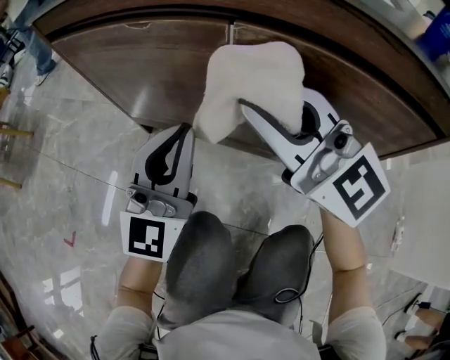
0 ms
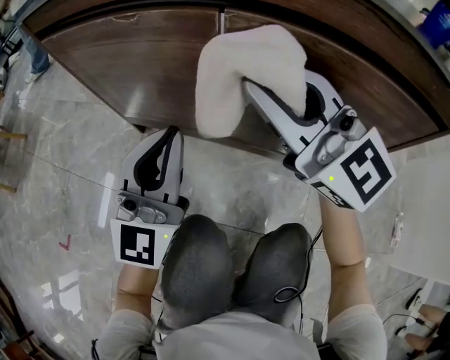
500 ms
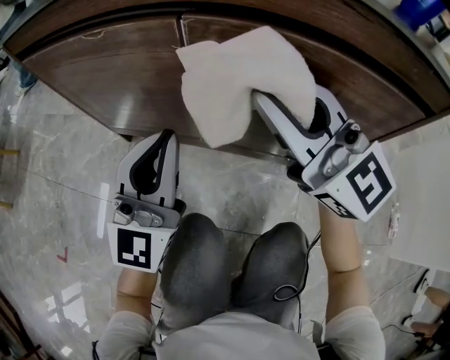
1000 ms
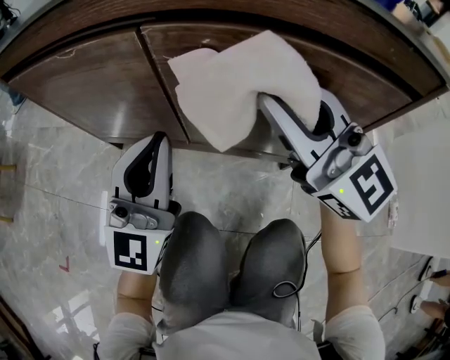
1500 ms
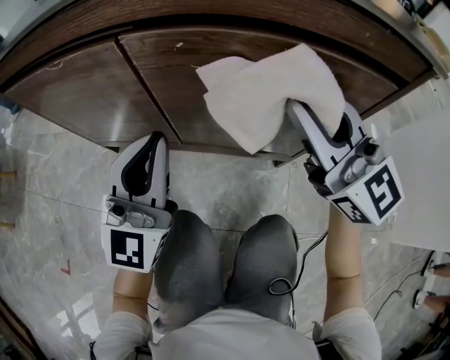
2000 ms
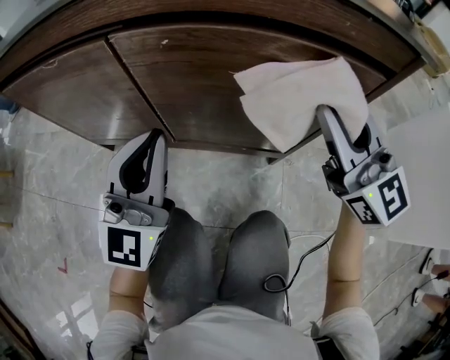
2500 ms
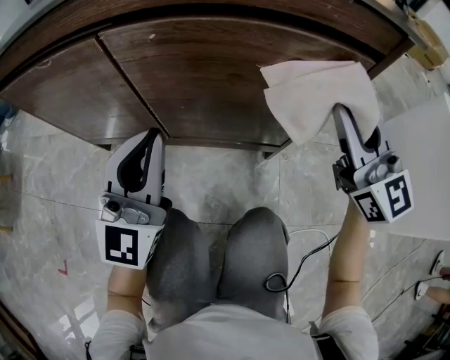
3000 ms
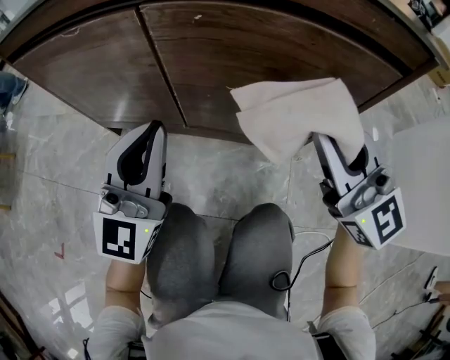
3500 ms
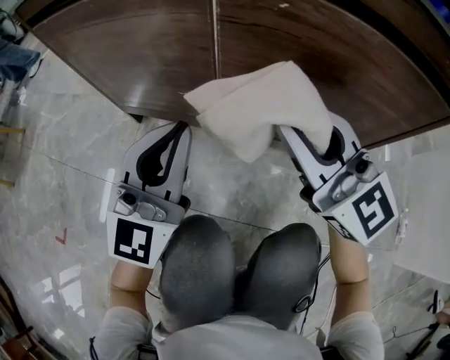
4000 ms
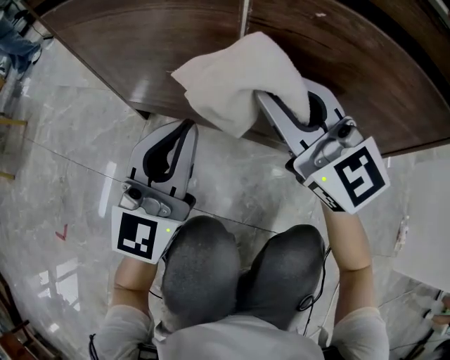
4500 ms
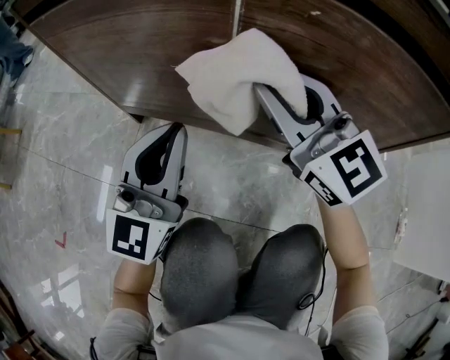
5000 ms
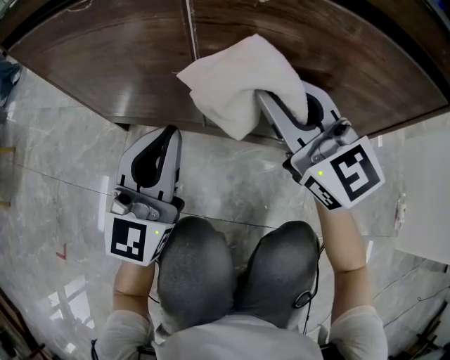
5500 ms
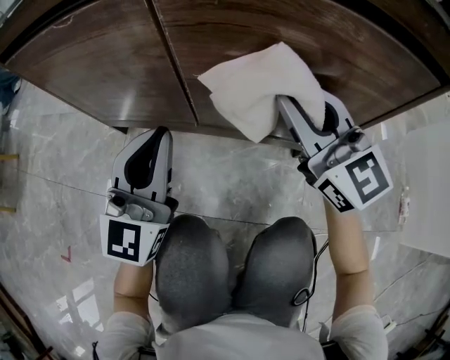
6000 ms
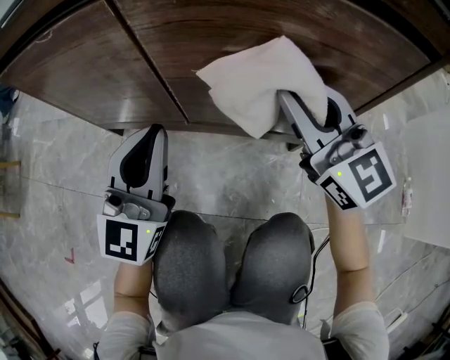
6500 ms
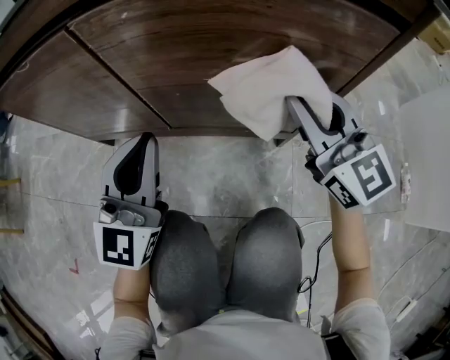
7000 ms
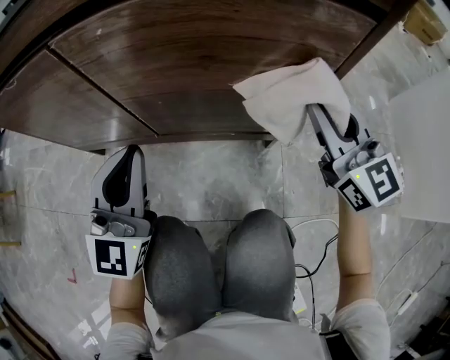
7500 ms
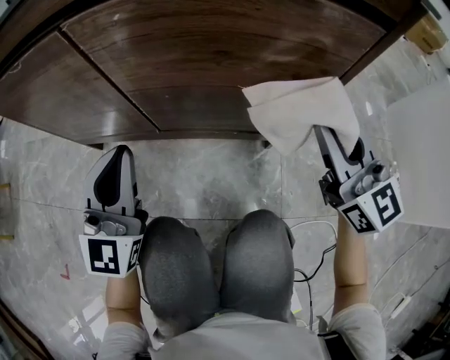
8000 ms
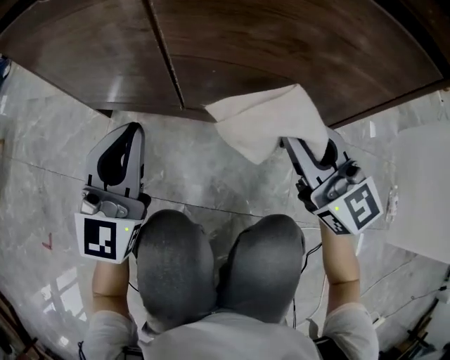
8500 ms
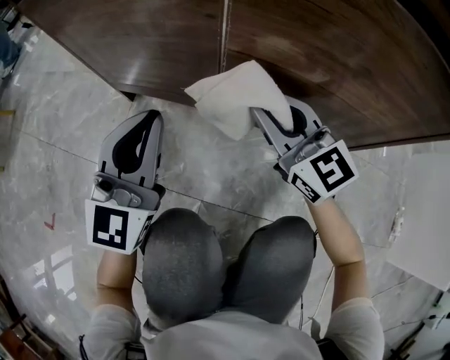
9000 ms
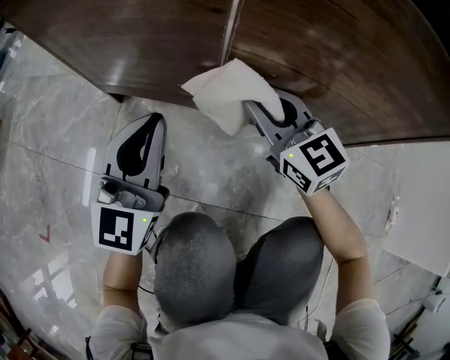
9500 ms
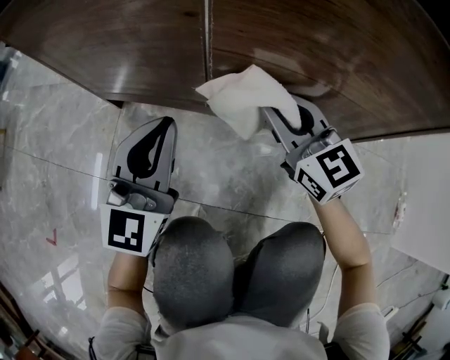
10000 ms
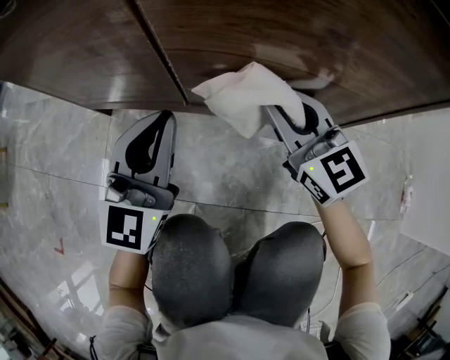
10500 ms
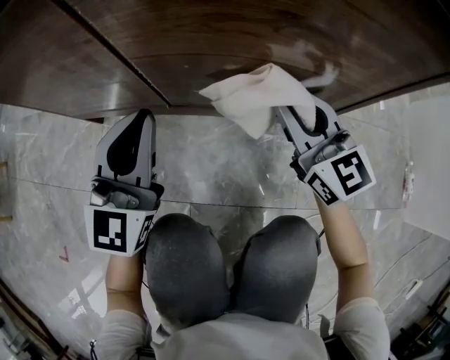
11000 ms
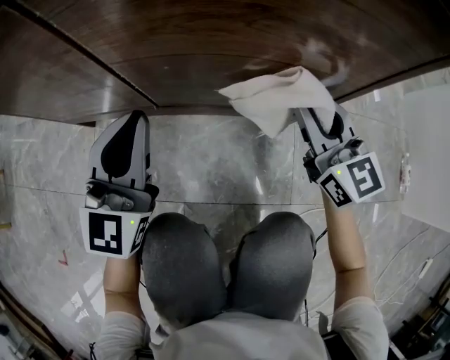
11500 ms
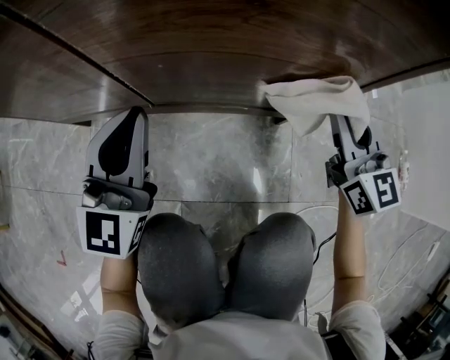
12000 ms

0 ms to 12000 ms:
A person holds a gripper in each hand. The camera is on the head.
0 ms to 2000 ms: The right gripper shifts some 20 cm to the right, and turns by roughly 20 degrees; the left gripper travels to the right by some 10 cm.
2000 ms to 4000 ms: The left gripper is displaced to the left by approximately 10 cm. The right gripper moves to the left and downward, some 15 cm.
4000 ms to 6000 ms: The right gripper moves to the right, some 10 cm.
6000 ms to 8000 ms: The right gripper goes some 20 cm to the right and backward.
8000 ms to 10000 ms: The left gripper goes roughly 15 cm downward, to the left and forward; the right gripper travels to the left, forward and downward by about 30 cm, and turns by some 20 degrees.
10000 ms to 12000 ms: The right gripper moves to the right, approximately 25 cm, and swivels approximately 30 degrees; the left gripper heads to the right, covering roughly 10 cm.

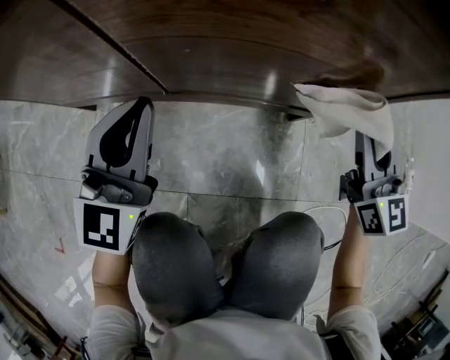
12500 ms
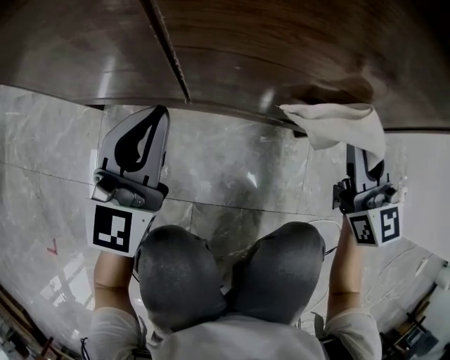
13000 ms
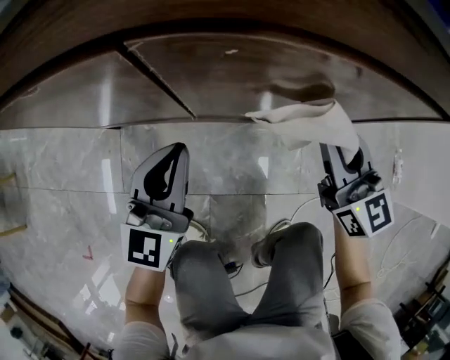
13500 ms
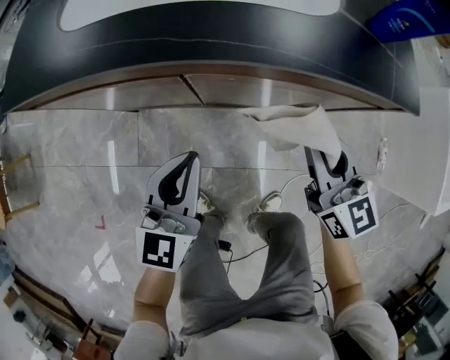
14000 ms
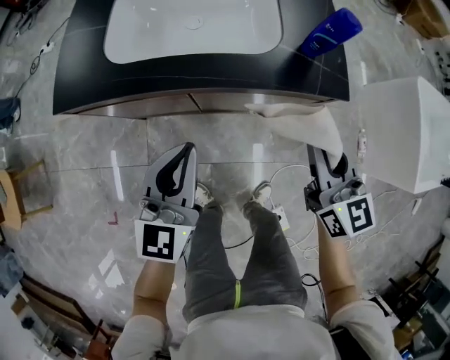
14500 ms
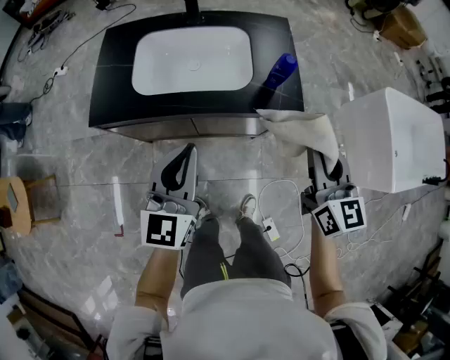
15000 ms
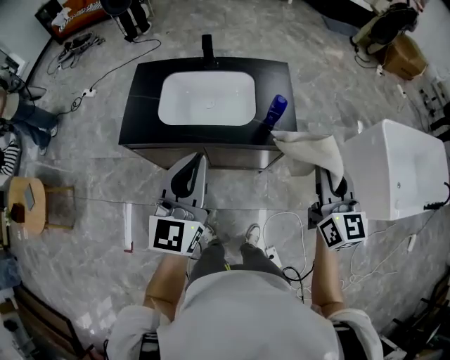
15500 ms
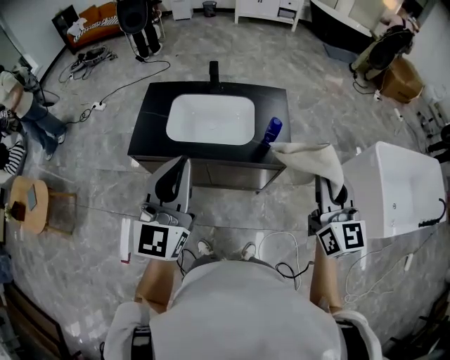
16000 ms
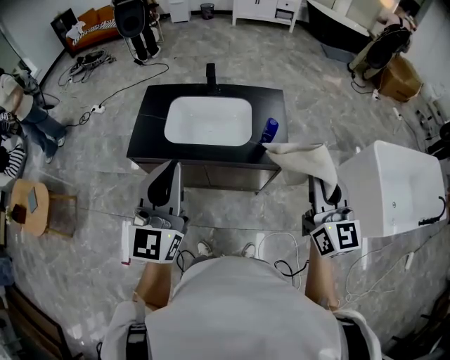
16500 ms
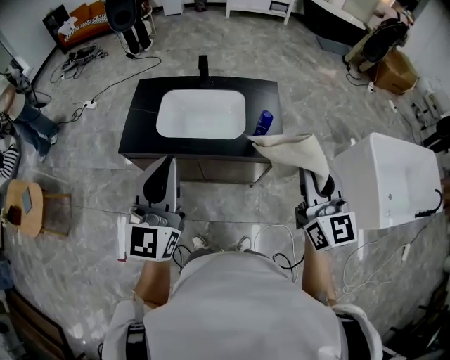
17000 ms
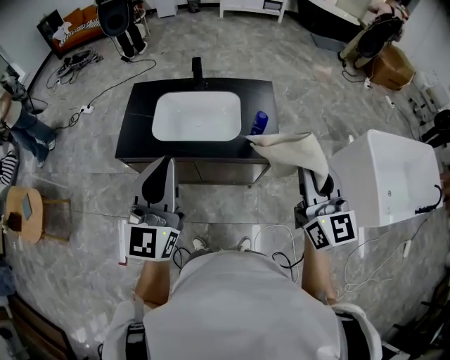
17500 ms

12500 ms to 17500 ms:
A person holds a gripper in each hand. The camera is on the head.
12500 ms to 15000 ms: Both grippers travel together upward, approximately 70 cm.
15000 ms to 17500 ms: Both grippers move upward, about 25 cm.

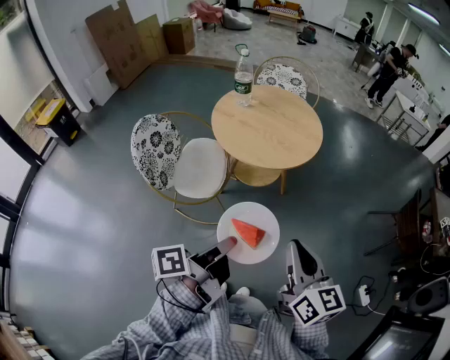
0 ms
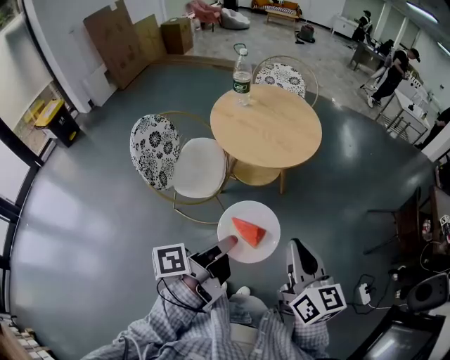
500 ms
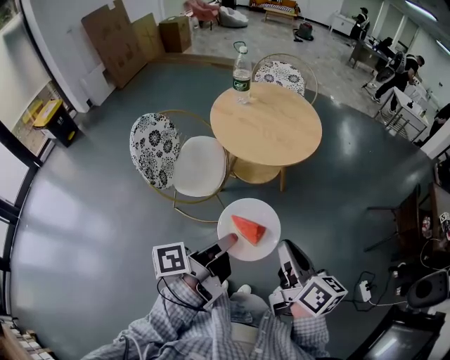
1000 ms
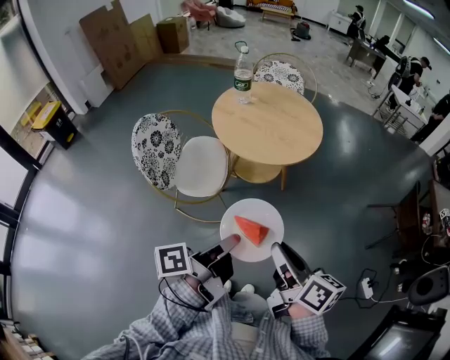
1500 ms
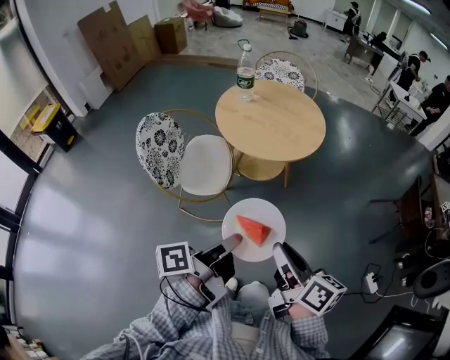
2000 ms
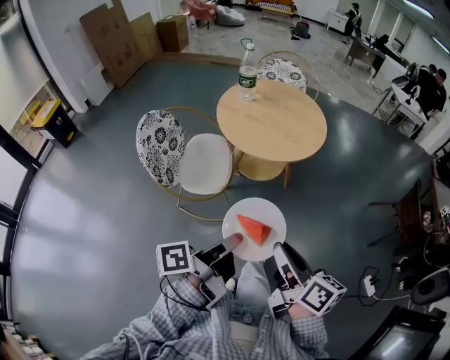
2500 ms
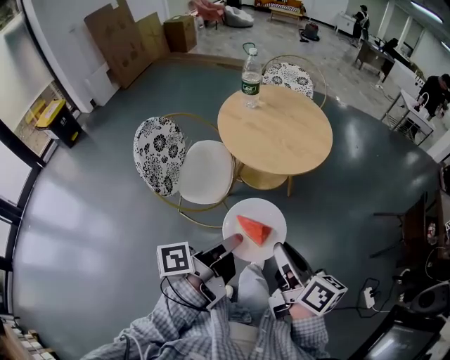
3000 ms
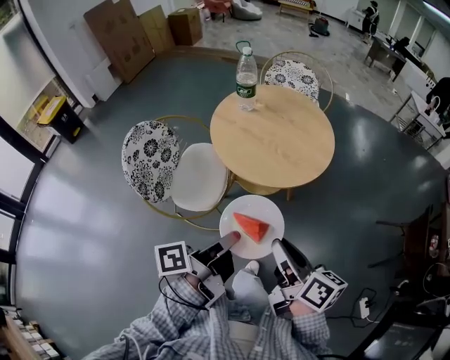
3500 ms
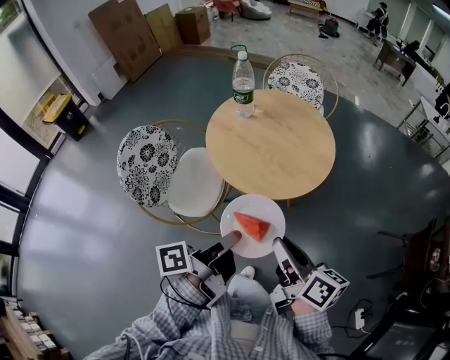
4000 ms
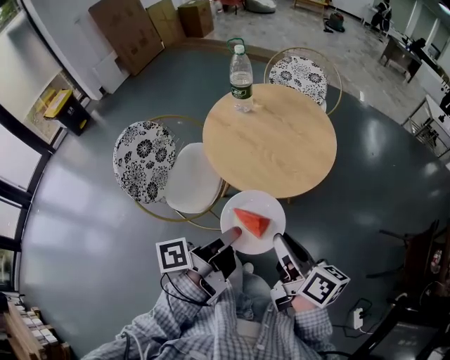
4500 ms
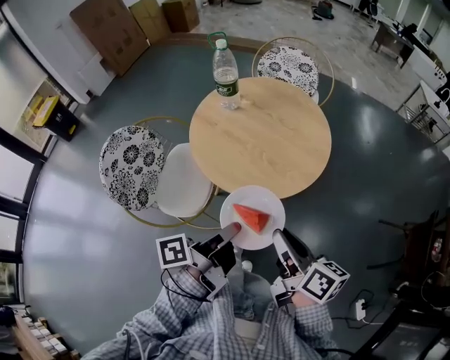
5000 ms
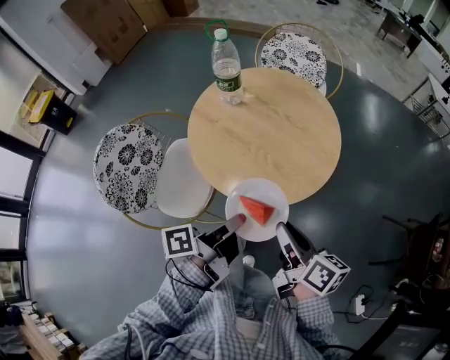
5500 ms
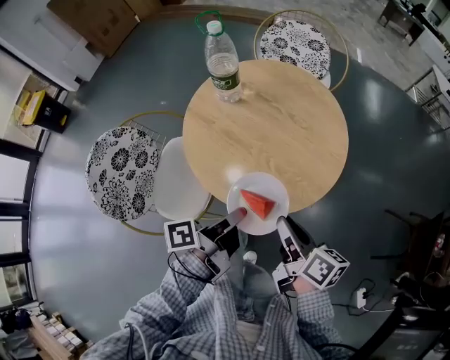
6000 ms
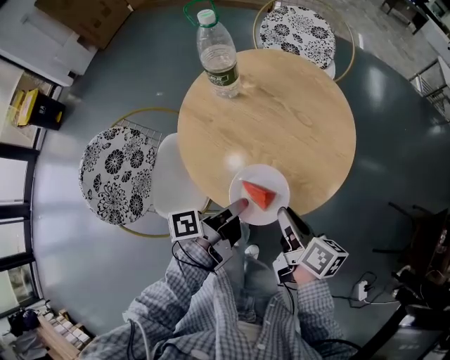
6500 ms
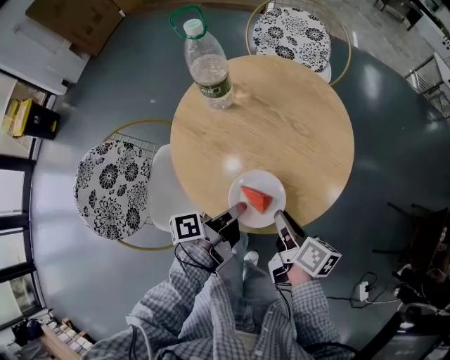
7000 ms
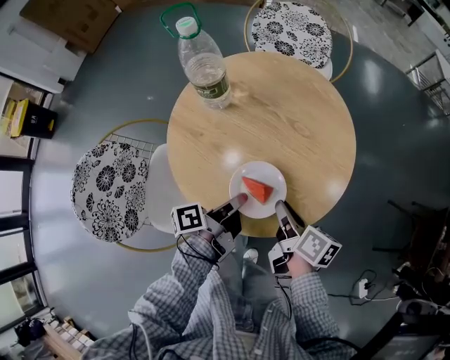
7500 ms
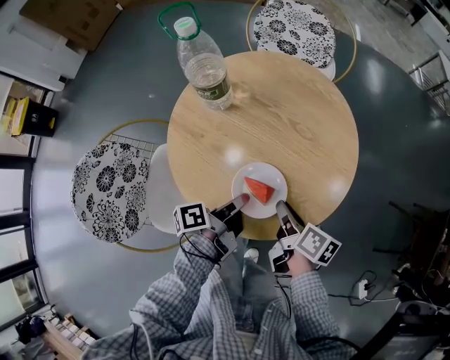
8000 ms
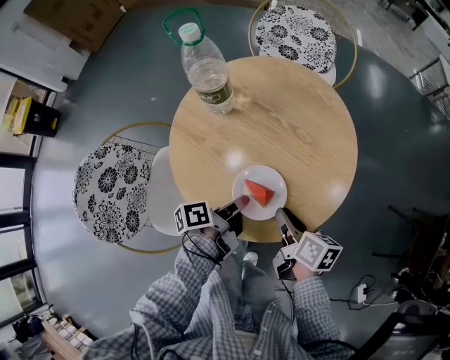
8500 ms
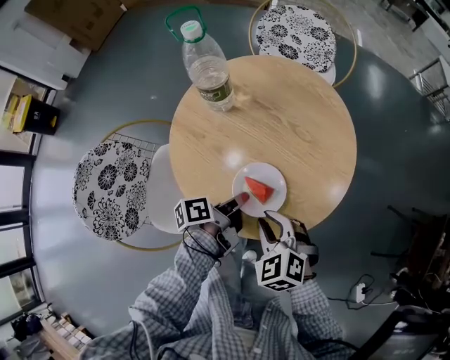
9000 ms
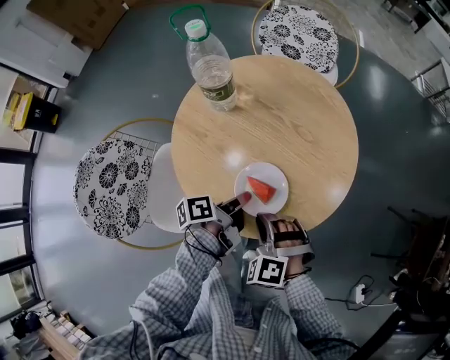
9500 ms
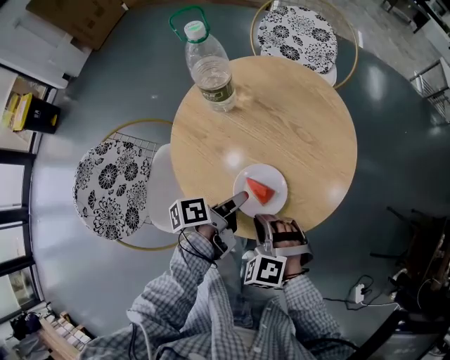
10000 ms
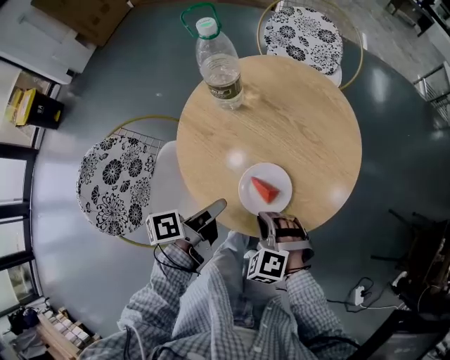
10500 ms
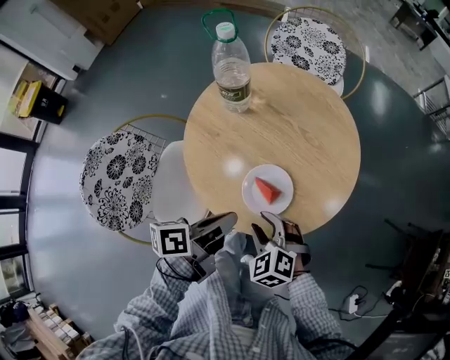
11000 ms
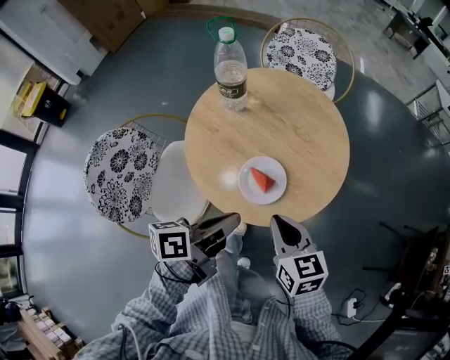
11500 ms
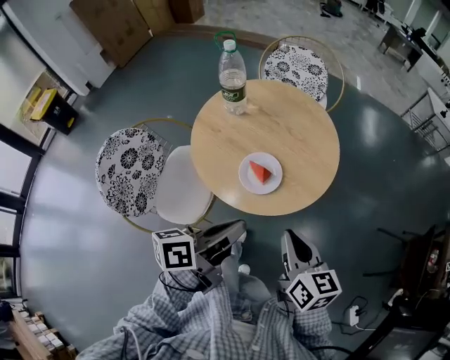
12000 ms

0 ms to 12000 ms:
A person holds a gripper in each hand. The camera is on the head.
0 ms to 2000 ms: The right gripper moves approximately 10 cm, and swivels about 30 degrees.
2000 ms to 4000 ms: The right gripper shifts by approximately 25 cm.
4000 ms to 6000 ms: The right gripper ends up roughly 20 cm from where it was.
6000 ms to 8000 ms: The right gripper goes about 10 cm downward.
8000 ms to 10000 ms: The right gripper moves approximately 10 cm, and rotates around the line of its fingers by roughly 120 degrees, counterclockwise from behind.
10000 ms to 12000 ms: The right gripper travels upward by about 15 cm, rolls clockwise, seen from behind, by some 80 degrees, and opens, then closes again.
